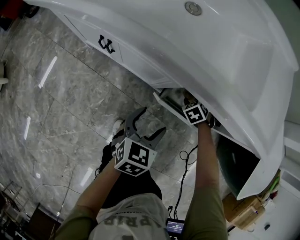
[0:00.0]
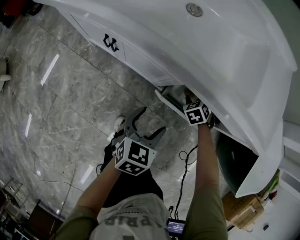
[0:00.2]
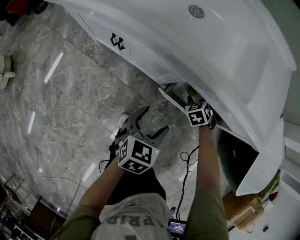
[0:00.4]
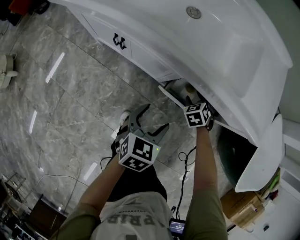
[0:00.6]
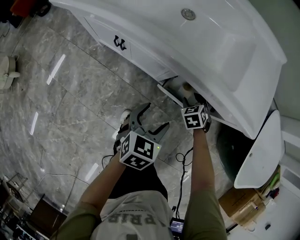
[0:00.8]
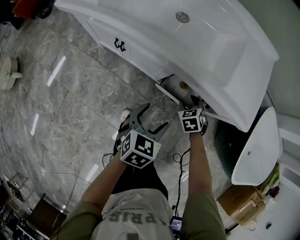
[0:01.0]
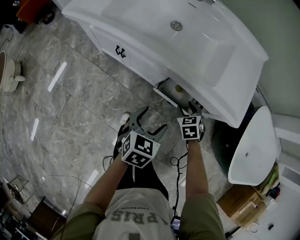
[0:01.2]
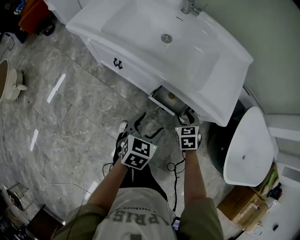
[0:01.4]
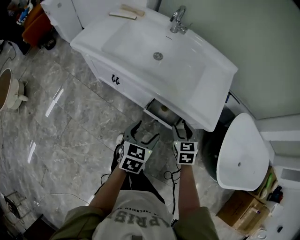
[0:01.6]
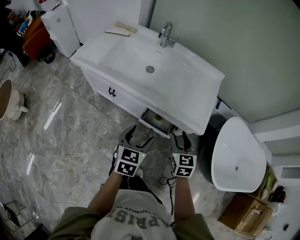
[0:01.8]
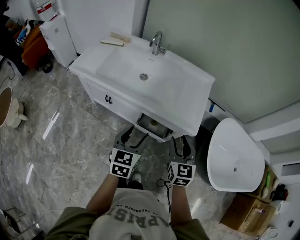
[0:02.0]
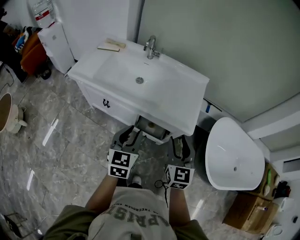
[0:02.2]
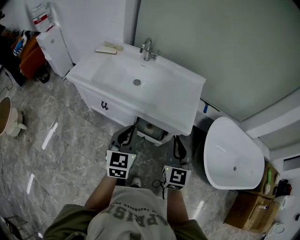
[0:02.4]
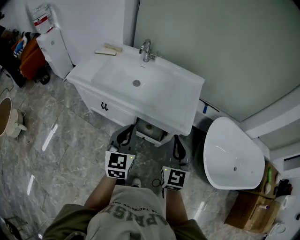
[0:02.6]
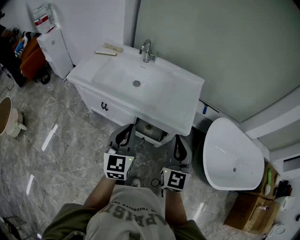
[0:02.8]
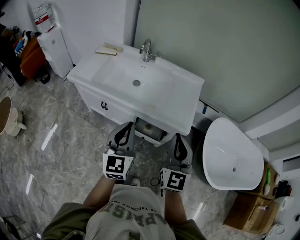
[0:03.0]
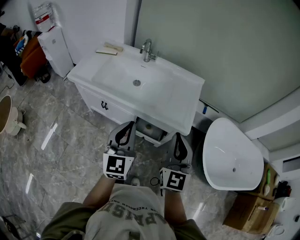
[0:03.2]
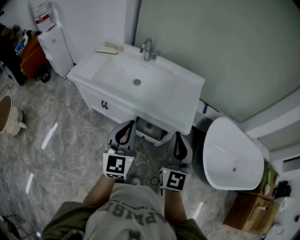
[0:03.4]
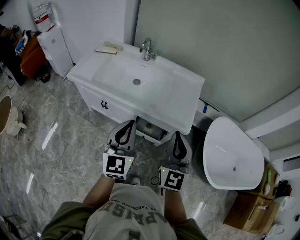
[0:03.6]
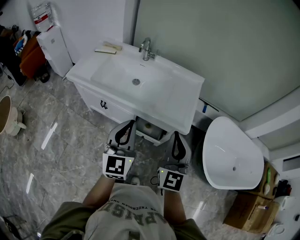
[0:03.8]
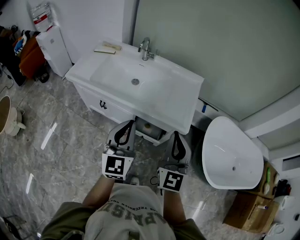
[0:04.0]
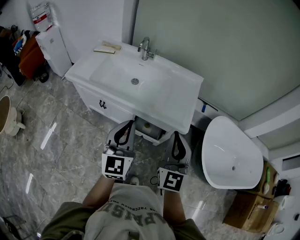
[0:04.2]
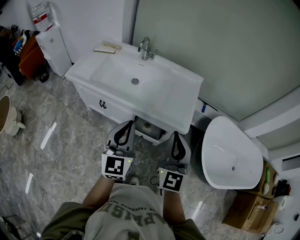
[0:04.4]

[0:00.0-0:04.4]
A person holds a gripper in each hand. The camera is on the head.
0.0 to 1.4 s: Both grippers move upward, roughly 25 cm. The right gripper rotates some 30 degrees.
1.4 to 3.0 s: Both grippers move upward, some 35 cm. The right gripper tips its fingers upward by roughly 60 degrees, and closes. Meanwhile the left gripper tips its fingers upward by approximately 40 degrees, and closes.
3.0 to 4.4 s: The grippers make only small movements.

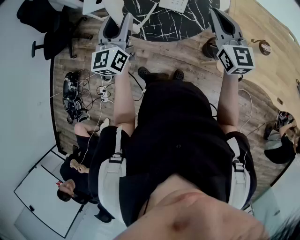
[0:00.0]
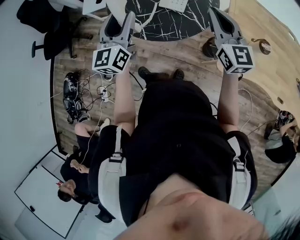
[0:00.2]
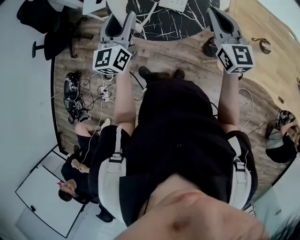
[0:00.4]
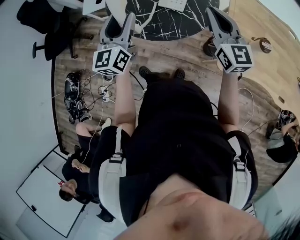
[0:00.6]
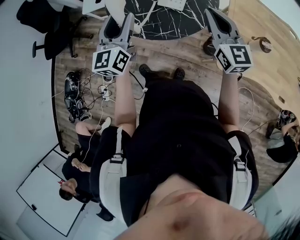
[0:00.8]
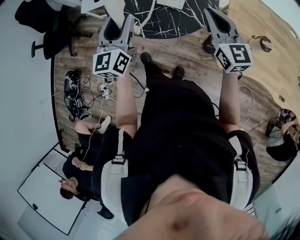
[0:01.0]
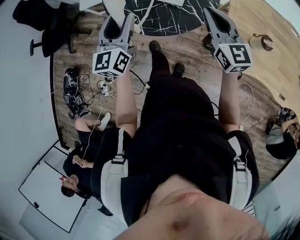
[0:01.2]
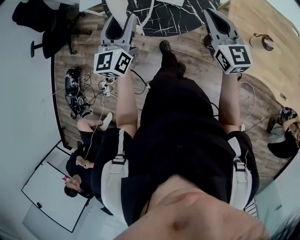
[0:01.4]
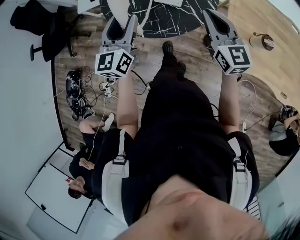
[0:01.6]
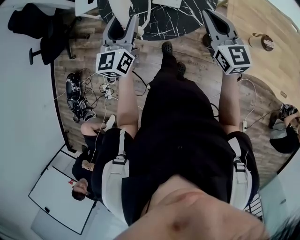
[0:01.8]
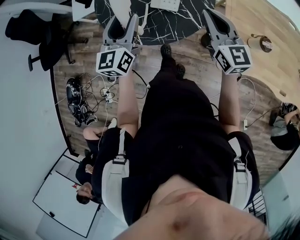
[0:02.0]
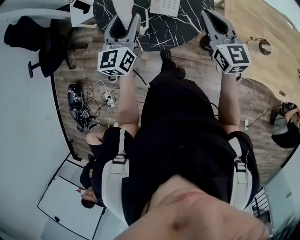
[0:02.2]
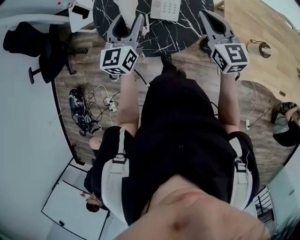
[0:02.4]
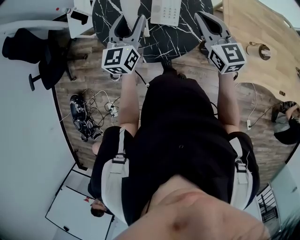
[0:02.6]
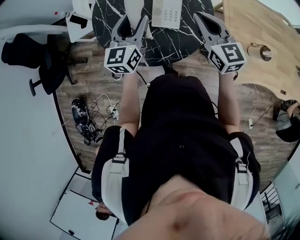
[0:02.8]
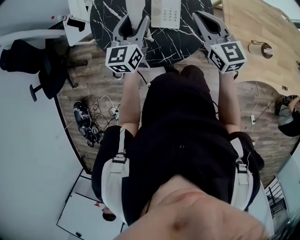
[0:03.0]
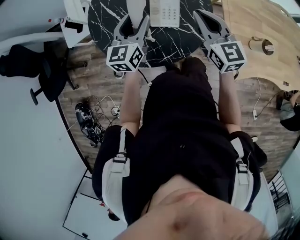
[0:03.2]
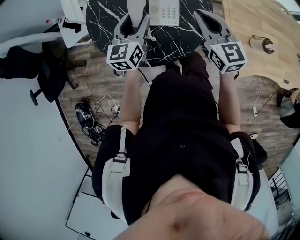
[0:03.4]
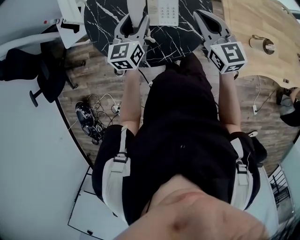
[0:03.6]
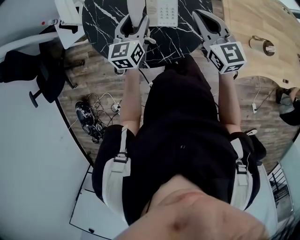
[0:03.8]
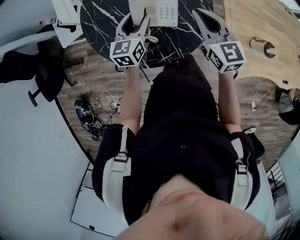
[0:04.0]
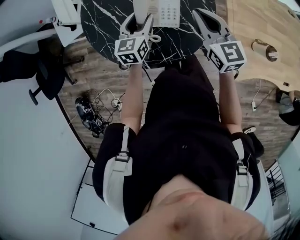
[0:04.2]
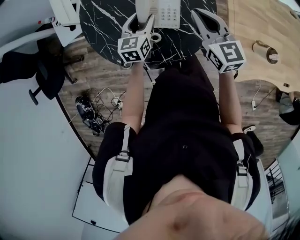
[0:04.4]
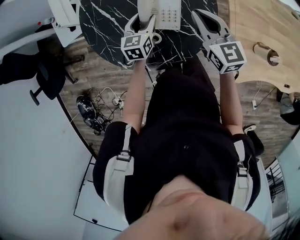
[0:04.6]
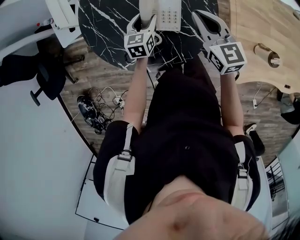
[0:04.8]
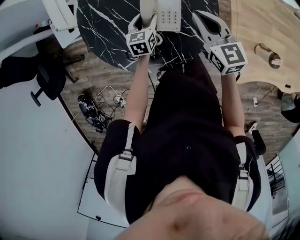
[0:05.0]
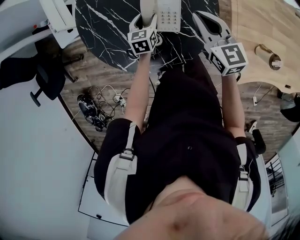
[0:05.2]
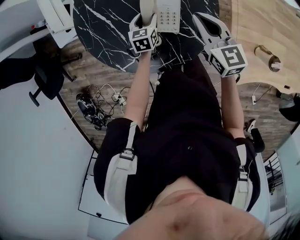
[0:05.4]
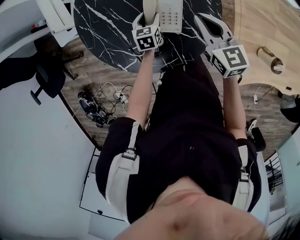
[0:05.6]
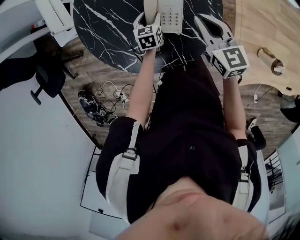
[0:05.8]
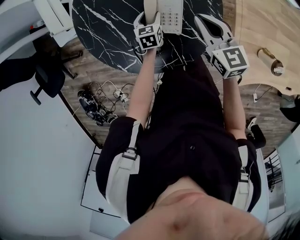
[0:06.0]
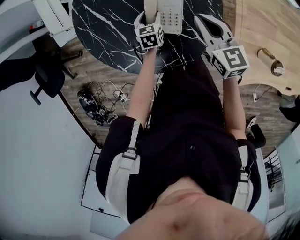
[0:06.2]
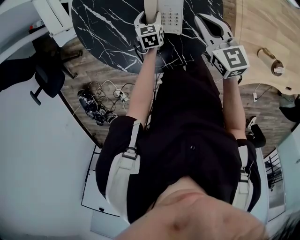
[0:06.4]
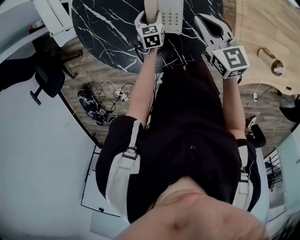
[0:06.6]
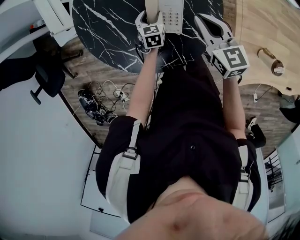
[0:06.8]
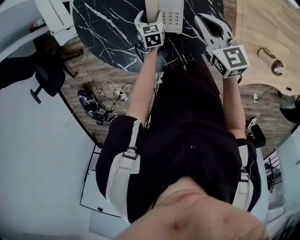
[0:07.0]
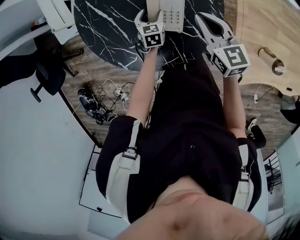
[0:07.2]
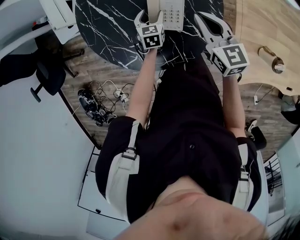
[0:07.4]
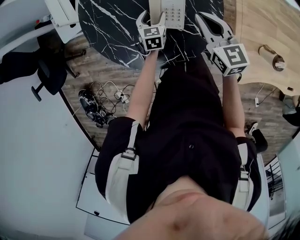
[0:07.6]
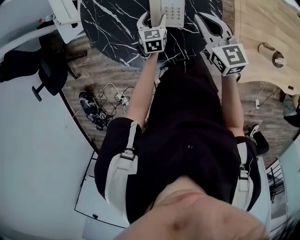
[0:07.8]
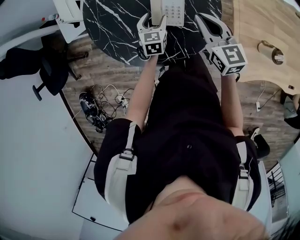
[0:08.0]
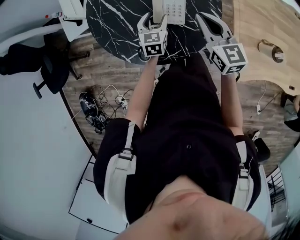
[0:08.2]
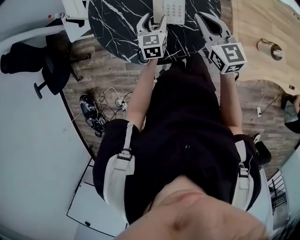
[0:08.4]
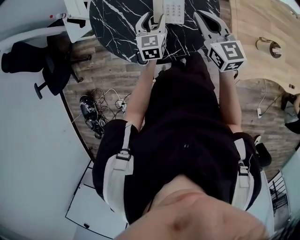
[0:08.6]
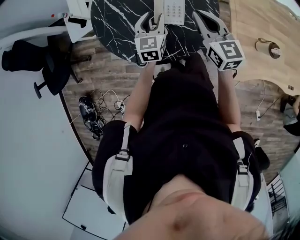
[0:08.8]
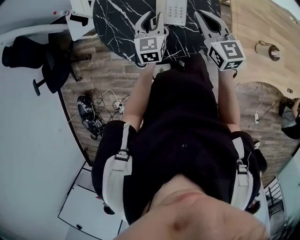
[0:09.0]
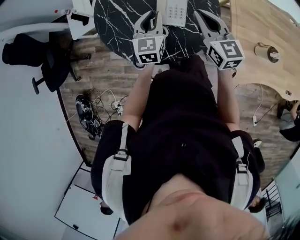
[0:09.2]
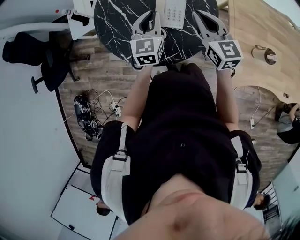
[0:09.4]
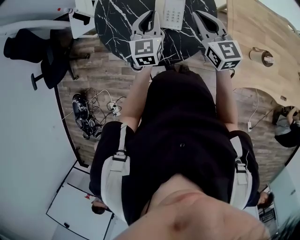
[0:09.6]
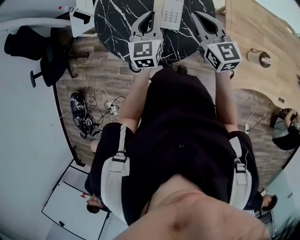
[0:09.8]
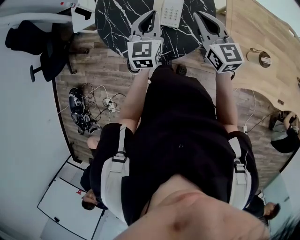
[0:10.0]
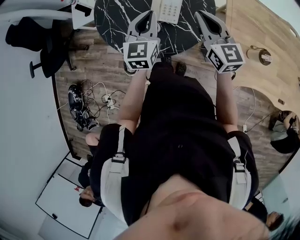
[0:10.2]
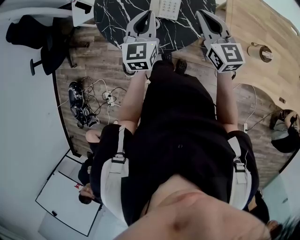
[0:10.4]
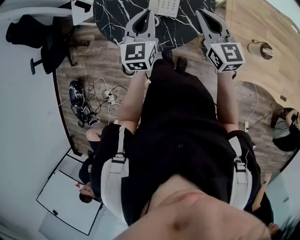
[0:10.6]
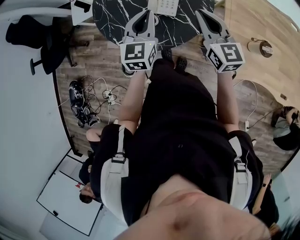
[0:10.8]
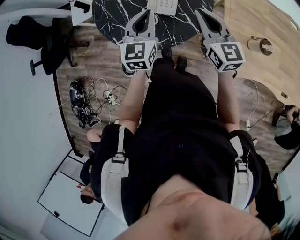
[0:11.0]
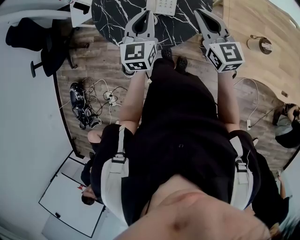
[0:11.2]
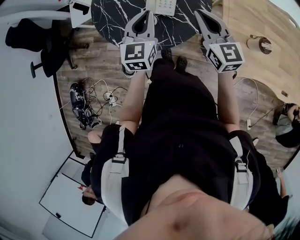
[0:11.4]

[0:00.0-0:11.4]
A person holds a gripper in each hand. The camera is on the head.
0.0 to 1.4 s: The grippers make only small movements.
1.4 to 2.8 s: The grippers both shift forward by roughly 15 cm.
2.8 to 4.2 s: The right gripper travels forward and downward by some 10 cm. The left gripper shifts about 15 cm downward and forward.
4.2 to 5.6 s: The right gripper is displaced downward by roughly 5 cm. Meanwhile the left gripper is displaced downward by approximately 20 cm, and swivels approximately 20 degrees.
5.6 to 7.2 s: The grippers make only small movements.
7.2 to 8.6 s: The left gripper travels upward and backward by about 20 cm, and turns by roughly 20 degrees, while the right gripper moves backward and upward, approximately 10 cm.
8.6 to 10.0 s: The right gripper shifts approximately 5 cm upward. The left gripper goes approximately 15 cm upward, and closes.
10.0 to 11.4 s: The grippers both shift backward by some 5 cm.

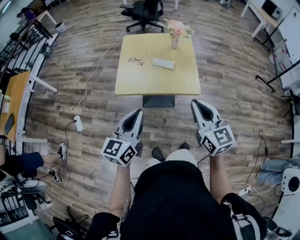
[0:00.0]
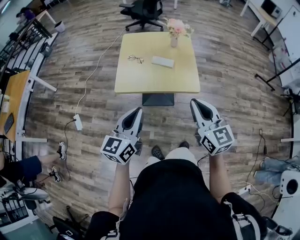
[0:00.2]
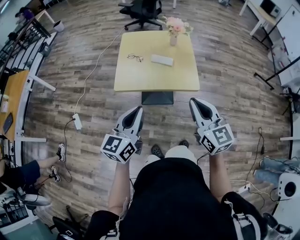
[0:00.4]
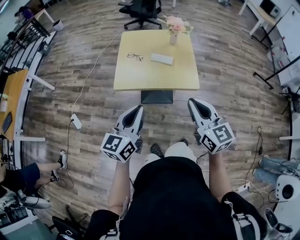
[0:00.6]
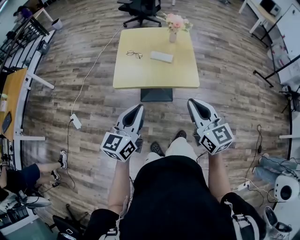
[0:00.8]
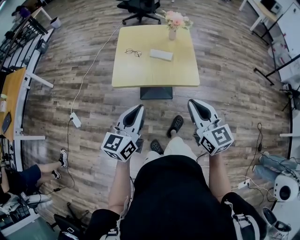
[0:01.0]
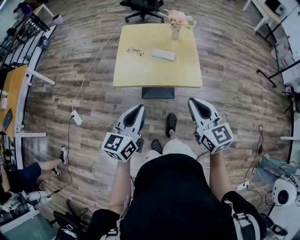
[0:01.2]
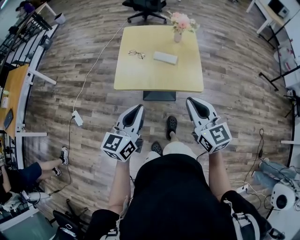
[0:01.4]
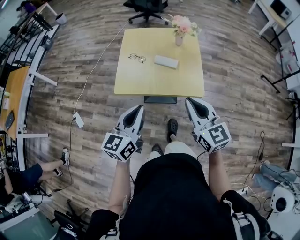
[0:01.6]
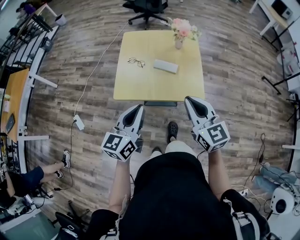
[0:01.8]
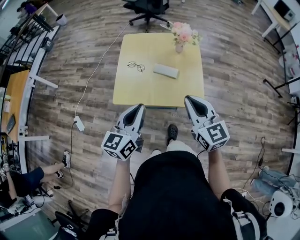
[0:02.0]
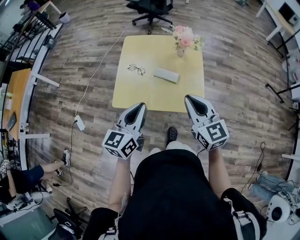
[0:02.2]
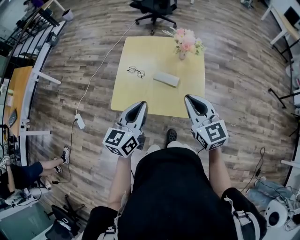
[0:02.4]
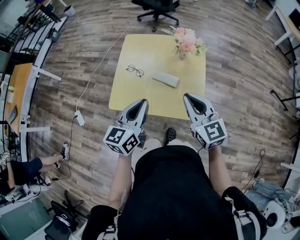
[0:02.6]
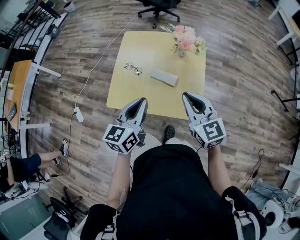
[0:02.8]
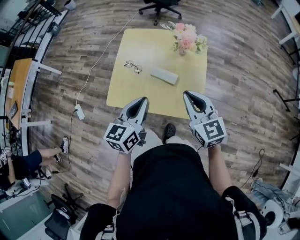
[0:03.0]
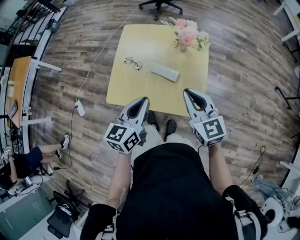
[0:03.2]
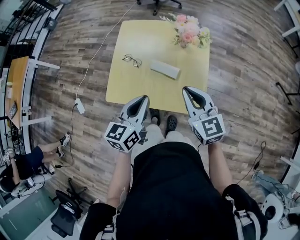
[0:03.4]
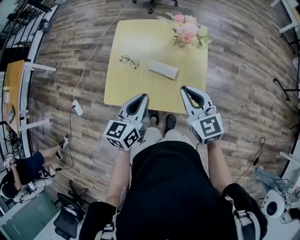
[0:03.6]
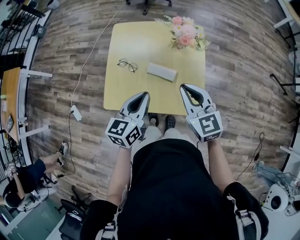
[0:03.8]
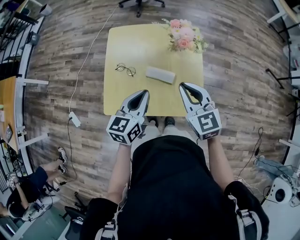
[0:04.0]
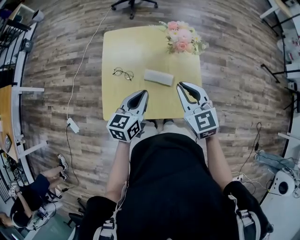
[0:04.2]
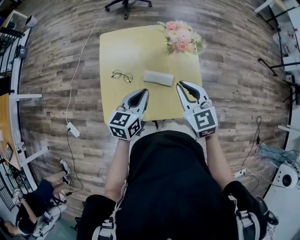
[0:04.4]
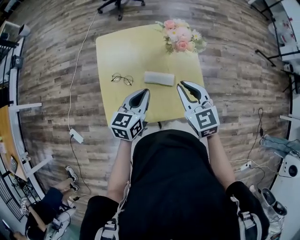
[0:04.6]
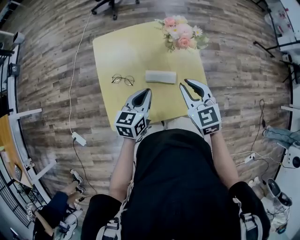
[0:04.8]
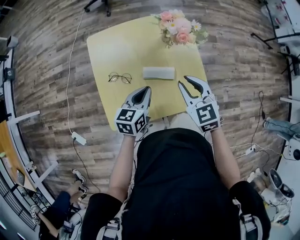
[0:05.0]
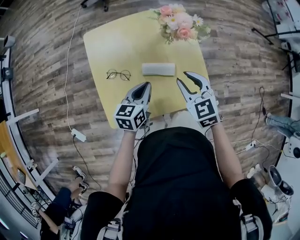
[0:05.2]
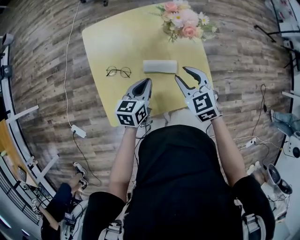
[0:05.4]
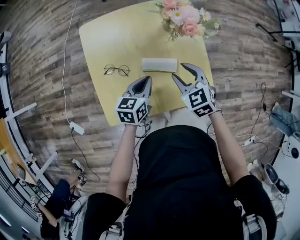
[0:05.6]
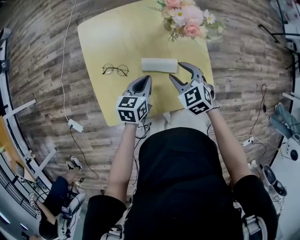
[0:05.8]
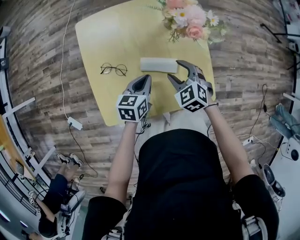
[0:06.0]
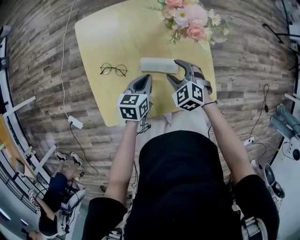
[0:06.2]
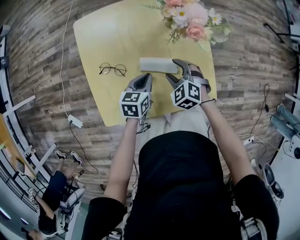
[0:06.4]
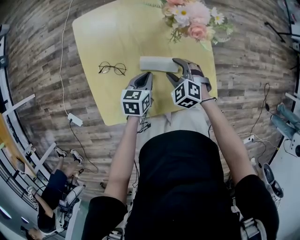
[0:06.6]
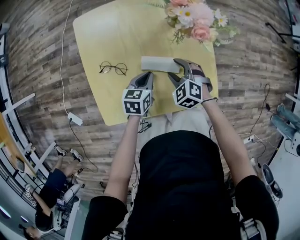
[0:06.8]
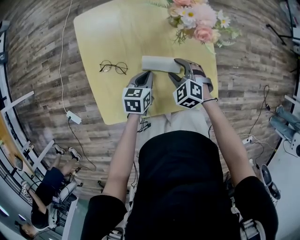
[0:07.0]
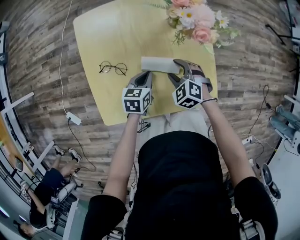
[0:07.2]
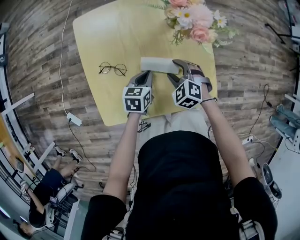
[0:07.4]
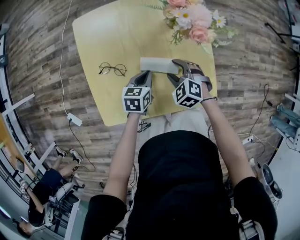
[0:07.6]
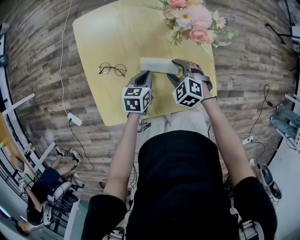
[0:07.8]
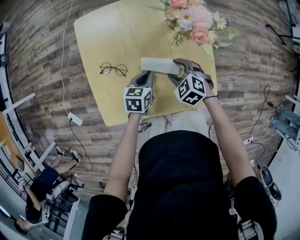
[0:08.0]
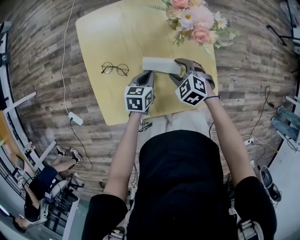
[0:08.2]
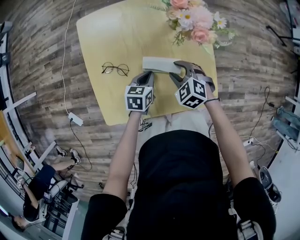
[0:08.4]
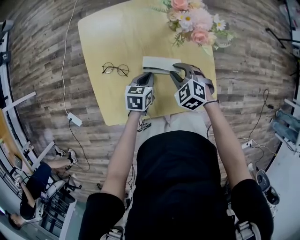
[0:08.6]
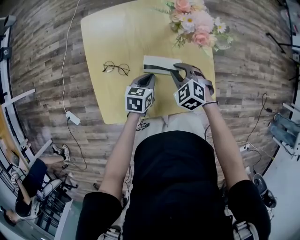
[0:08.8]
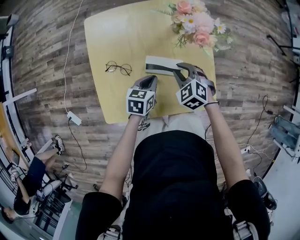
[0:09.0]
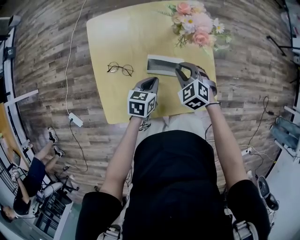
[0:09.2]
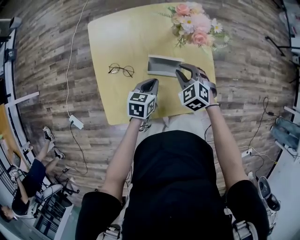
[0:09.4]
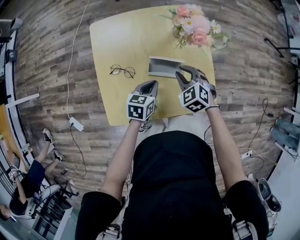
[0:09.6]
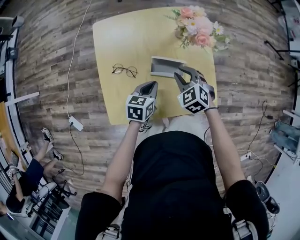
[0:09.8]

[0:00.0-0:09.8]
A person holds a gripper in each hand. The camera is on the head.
0.0 to 1.4 s: There are only small adjustments of the grippers.
1.4 to 2.8 s: The right gripper travels forward by roughly 25 cm. The left gripper travels forward and to the right by roughly 25 cm.
2.8 to 4.2 s: The left gripper goes roughly 15 cm forward and downward; the right gripper goes about 10 cm forward.
4.2 to 5.6 s: The right gripper heads downward, covering some 15 cm, rotates about 20 degrees, and opens up. The left gripper moves downward and forward, about 15 cm.
5.6 to 7.0 s: Both grippers travel together downward, about 10 cm. The right gripper swivels about 30 degrees.
7.0 to 8.4 s: The grippers move only a little.
8.4 to 9.8 s: The two grippers go about 5 cm upward.
